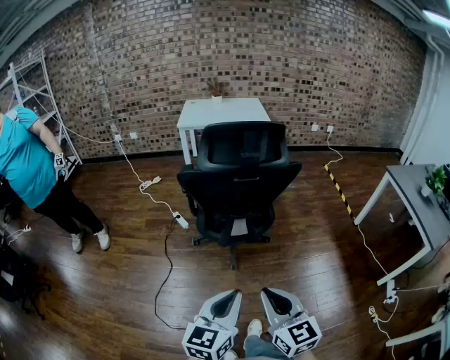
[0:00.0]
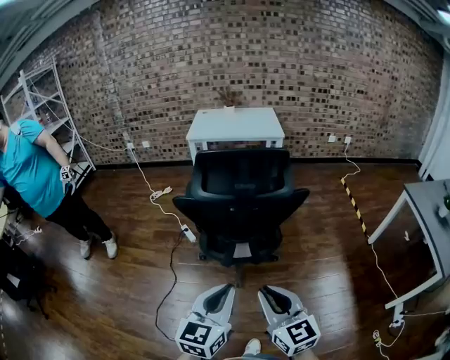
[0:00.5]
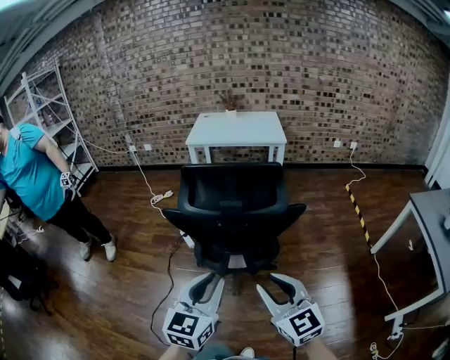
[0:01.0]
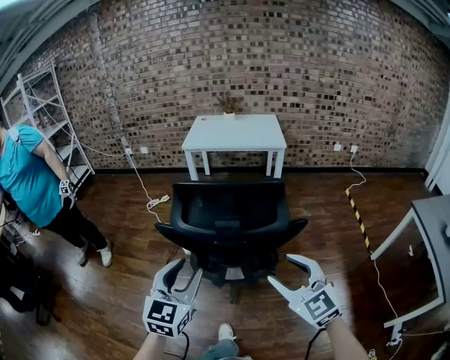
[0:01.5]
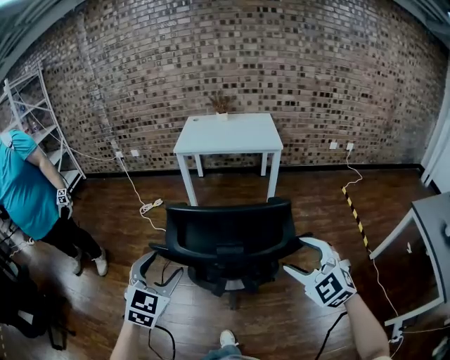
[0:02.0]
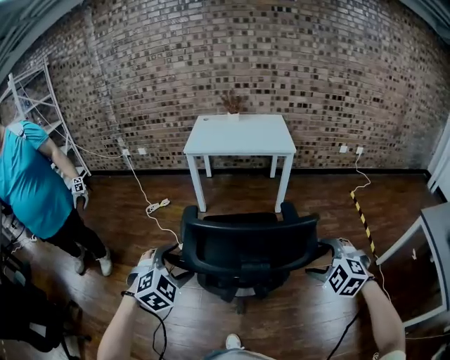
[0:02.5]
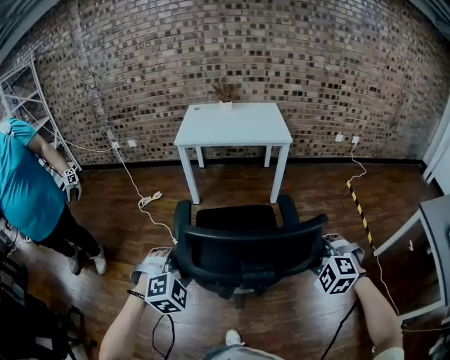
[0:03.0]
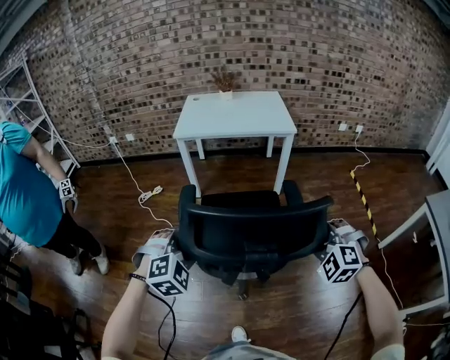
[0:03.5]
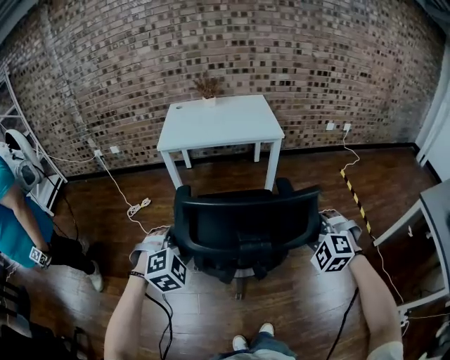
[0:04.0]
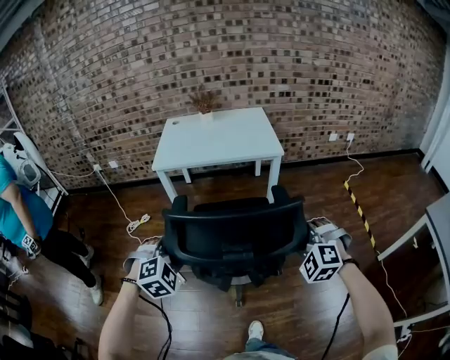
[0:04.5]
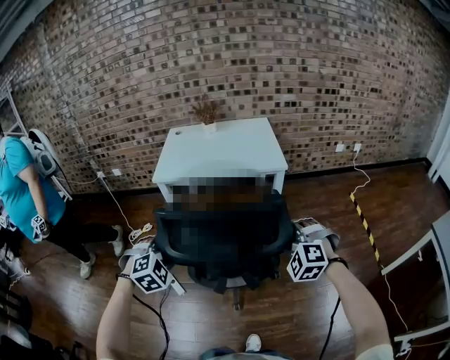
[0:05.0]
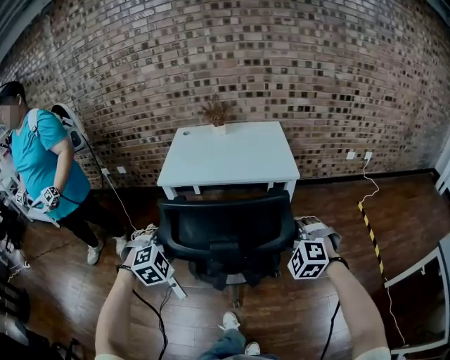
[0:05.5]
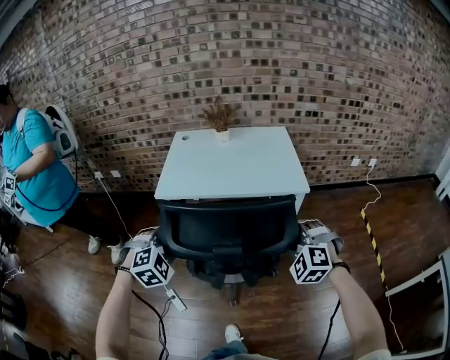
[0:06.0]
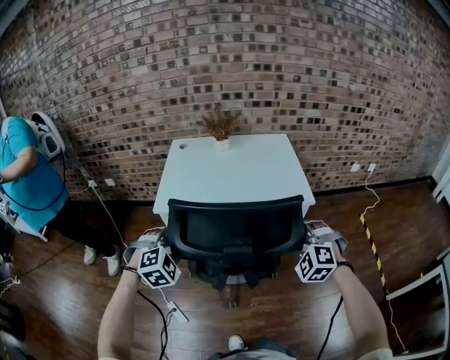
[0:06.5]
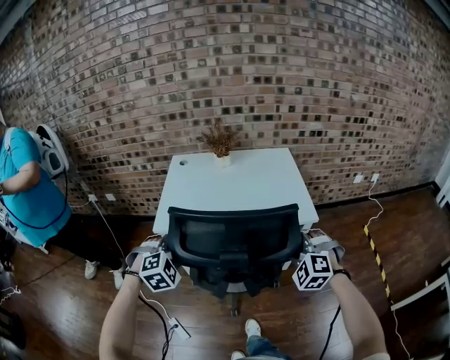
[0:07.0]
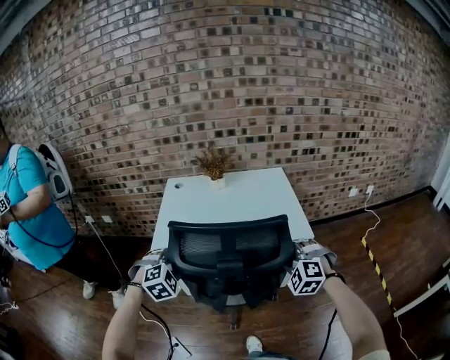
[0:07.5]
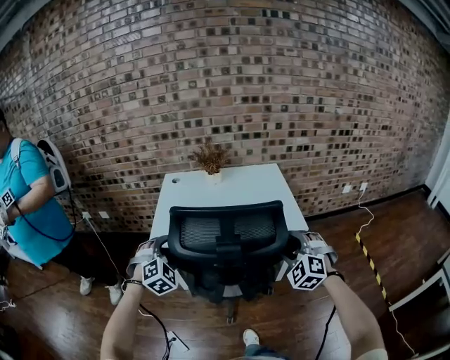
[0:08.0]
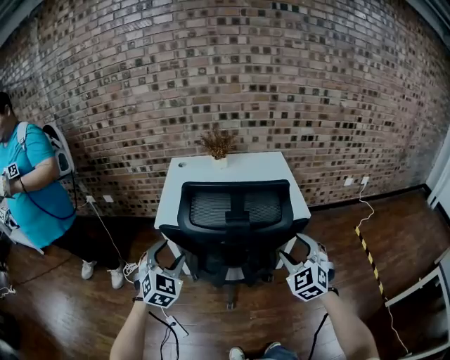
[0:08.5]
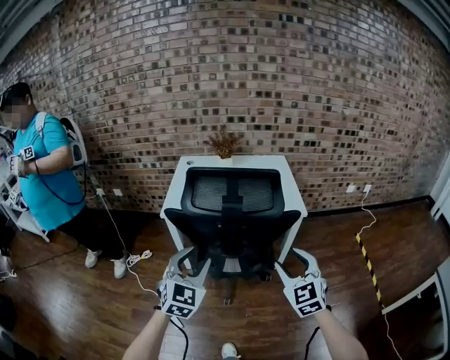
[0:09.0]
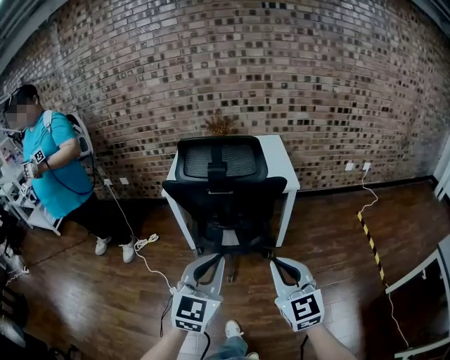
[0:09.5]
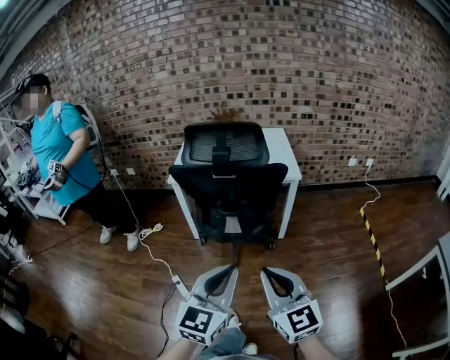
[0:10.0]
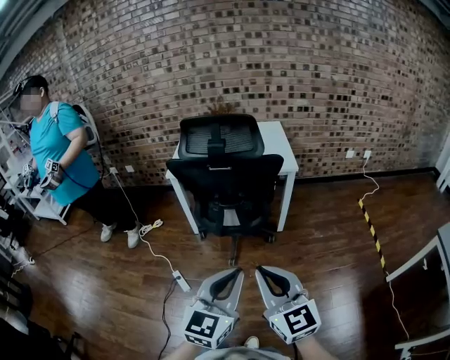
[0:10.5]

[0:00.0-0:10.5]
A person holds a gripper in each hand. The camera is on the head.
0:00.0 to 0:02.0: The left gripper shifts approximately 35 cm forward, swivels about 40 degrees, and opens up. The right gripper goes approximately 40 cm forward and to the right, rolls counterclockwise, seen from behind, by approximately 40 degrees, and opens up.
0:02.0 to 0:04.0: Both grippers travel together forward, about 25 cm. The right gripper turns by approximately 30 degrees, and closes its fingers. Meanwhile the left gripper swivels some 50 degrees.
0:04.0 to 0:06.5: The pair of grippers is taken forward, some 40 cm.
0:06.5 to 0:08.5: The left gripper travels forward and back again, some 10 cm each way, and rotates roughly 40 degrees. The right gripper moves some 10 cm forward and comes back, and swivels some 30 degrees.
0:08.5 to 0:10.5: The left gripper is displaced backward and to the right by some 50 cm, swivels some 40 degrees, and closes its fingers. The right gripper moves backward, some 40 cm, swivels approximately 50 degrees, and closes.

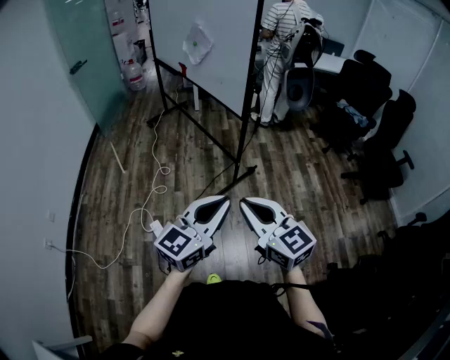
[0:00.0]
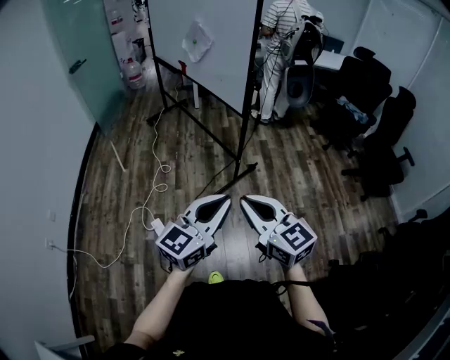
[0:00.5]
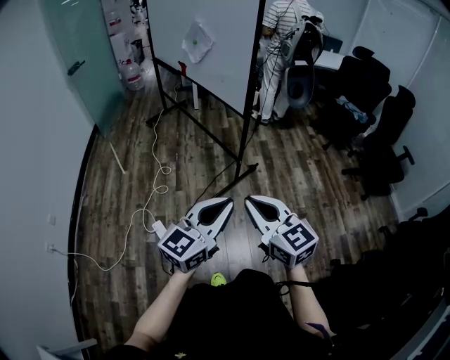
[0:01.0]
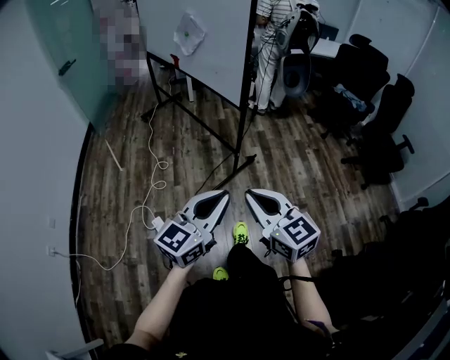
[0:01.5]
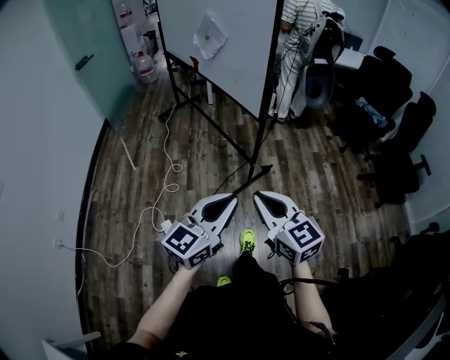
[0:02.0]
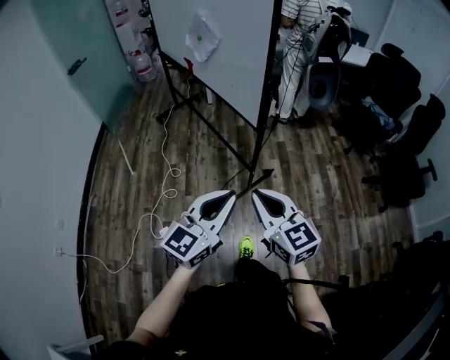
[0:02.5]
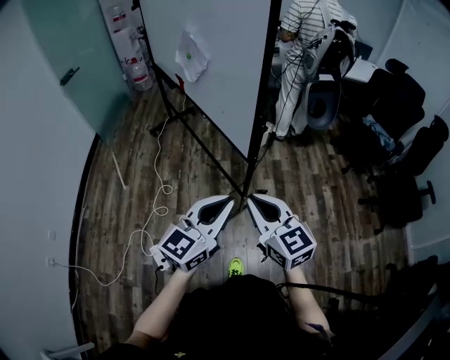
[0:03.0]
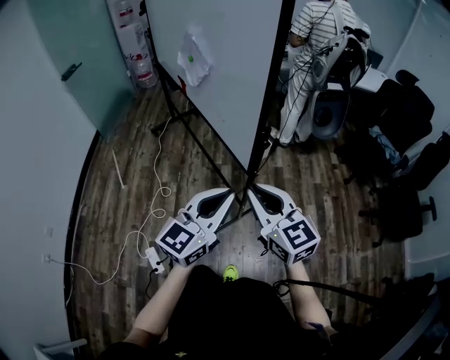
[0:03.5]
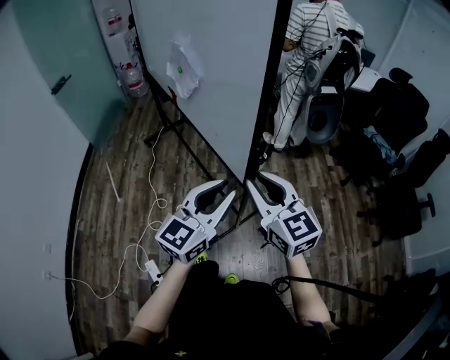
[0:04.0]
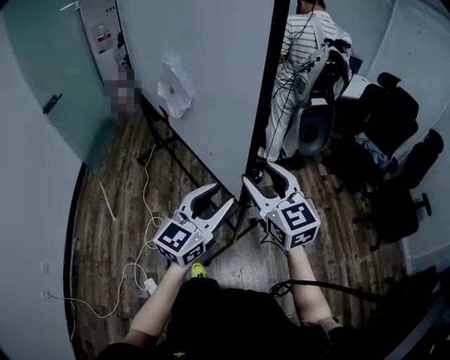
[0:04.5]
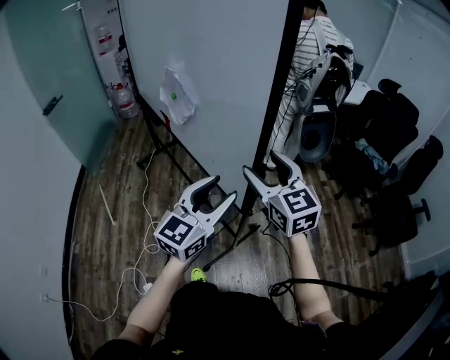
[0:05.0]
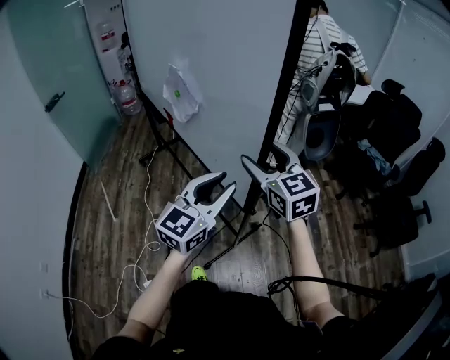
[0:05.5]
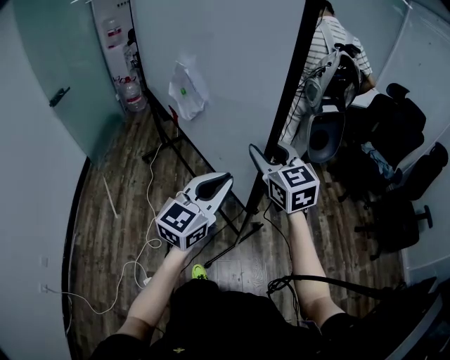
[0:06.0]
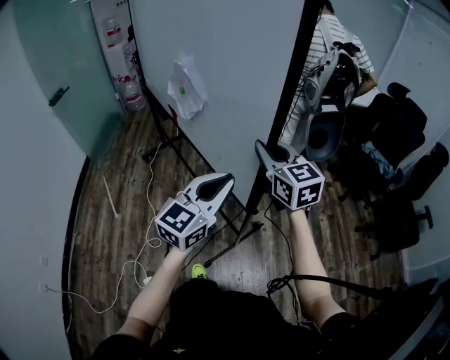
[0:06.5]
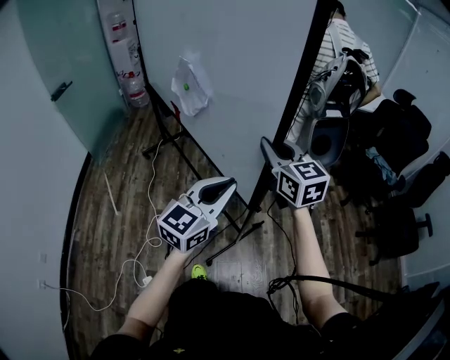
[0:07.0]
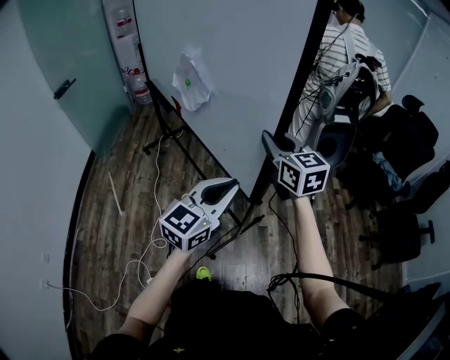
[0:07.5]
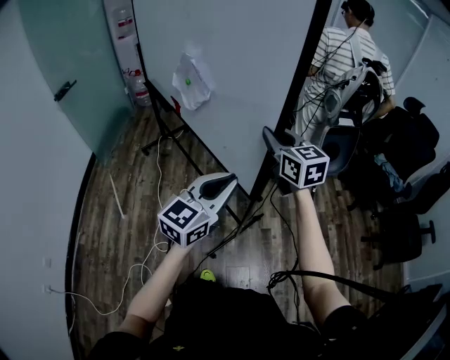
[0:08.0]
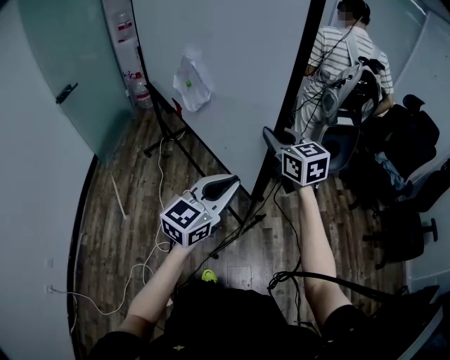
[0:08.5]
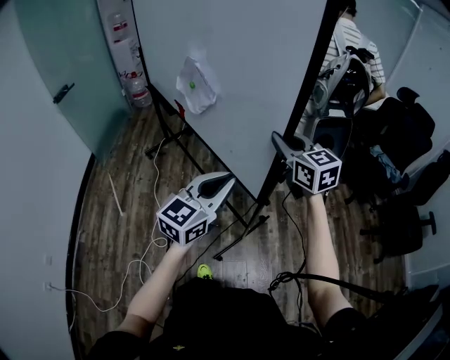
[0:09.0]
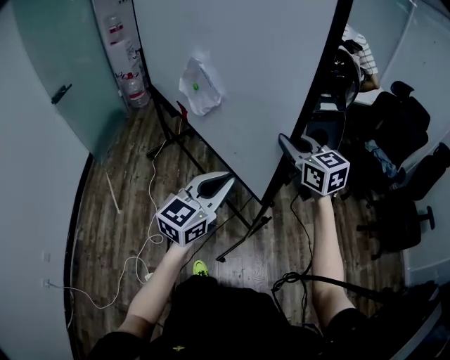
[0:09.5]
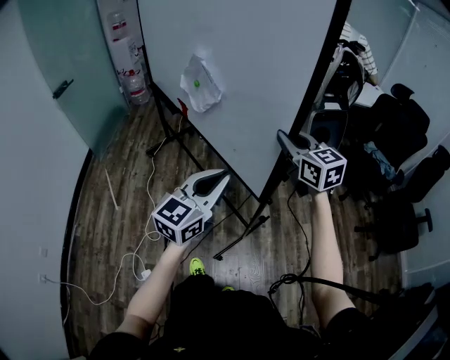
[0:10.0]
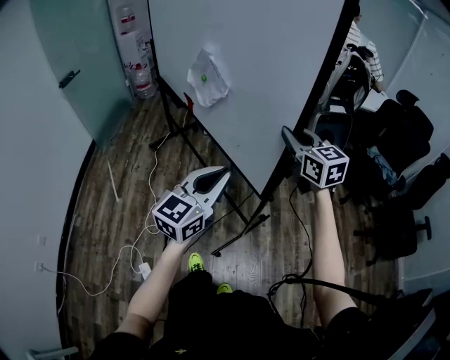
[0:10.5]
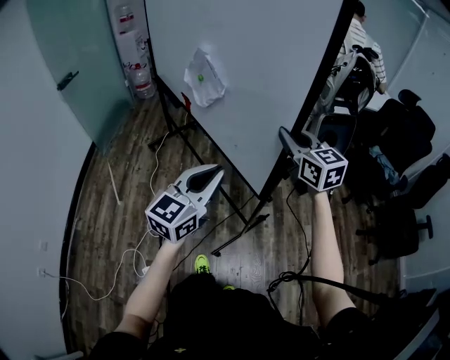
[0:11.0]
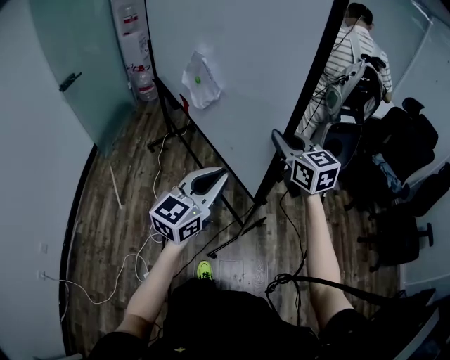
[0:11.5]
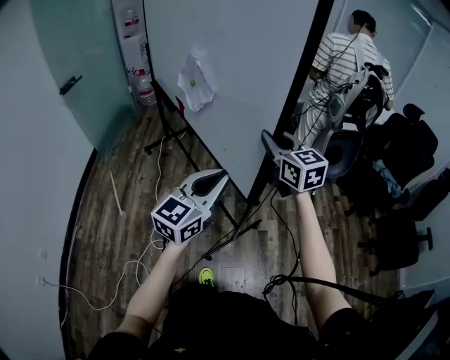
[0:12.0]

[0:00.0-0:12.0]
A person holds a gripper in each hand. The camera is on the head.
0:00.0 to 0:02.0: The two grippers go approximately 10 cm forward.
0:02.0 to 0:04.0: Both grippers move forward, about 35 cm.
0:04.0 to 0:06.0: The left gripper shifts approximately 10 cm forward, and opens, then closes again; the right gripper moves forward, roughly 15 cm, and opens, then closes once more.
0:06.0 to 0:08.0: The left gripper is displaced to the left and forward by approximately 10 cm. Meanwhile the right gripper shifts approximately 15 cm forward and to the left, and closes.
0:08.0 to 0:10.0: The left gripper travels to the right and backward by roughly 10 cm, while the right gripper travels to the right and backward by about 15 cm.
0:10.0 to 0:12.0: Both grippers travel together to the left and forward, some 15 cm.

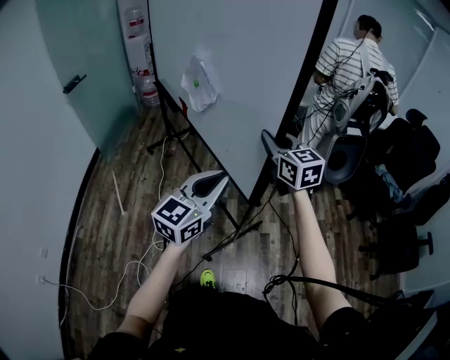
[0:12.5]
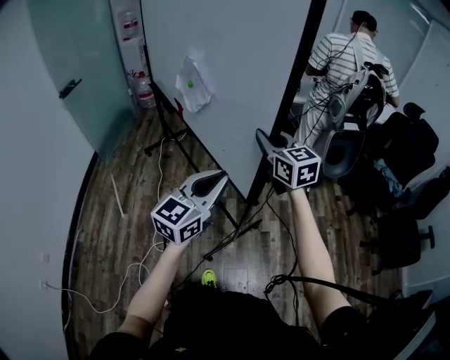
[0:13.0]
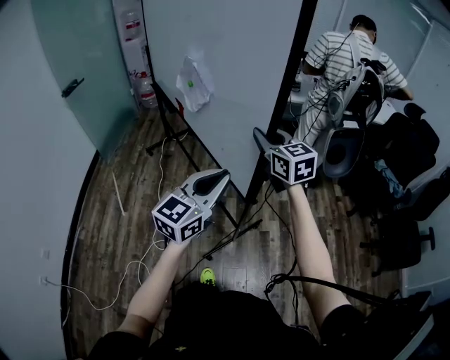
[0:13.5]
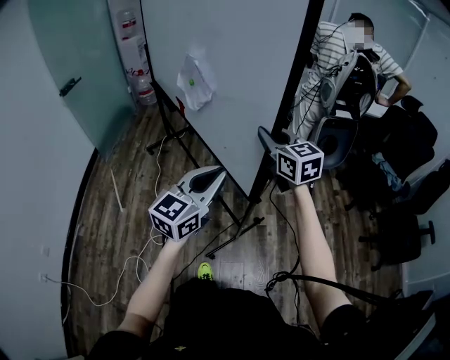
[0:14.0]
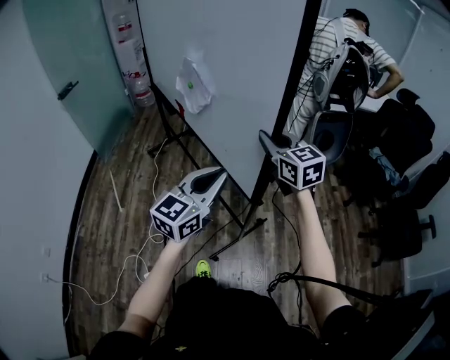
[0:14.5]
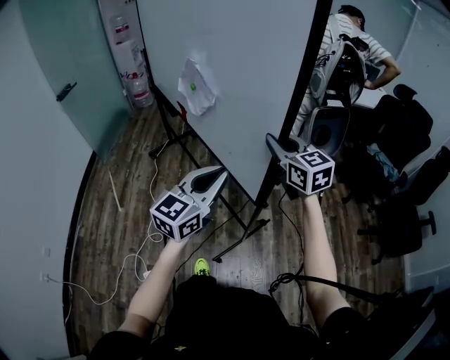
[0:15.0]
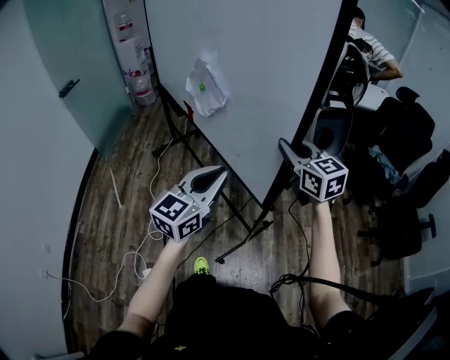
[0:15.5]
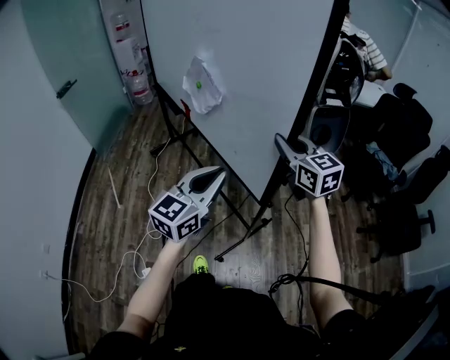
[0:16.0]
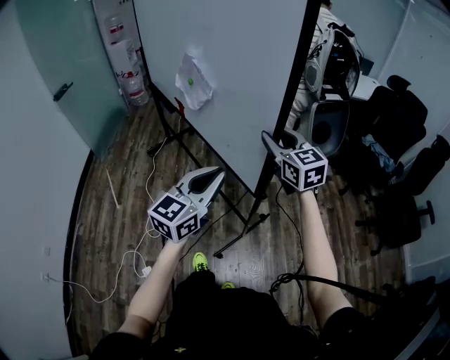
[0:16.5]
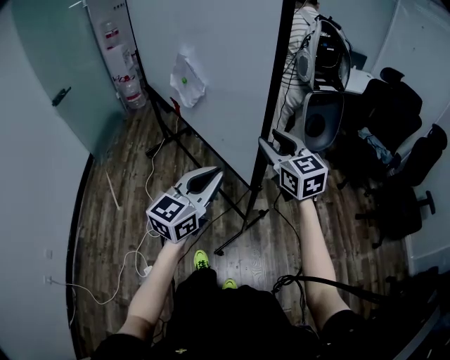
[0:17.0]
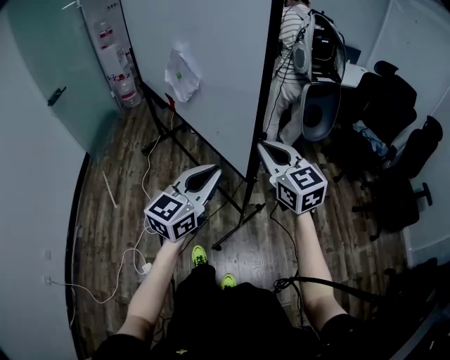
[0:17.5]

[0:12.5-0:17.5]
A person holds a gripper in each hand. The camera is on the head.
0:12.5 to 0:15.0: The grippers both shift to the right and backward by roughly 15 cm.
0:15.0 to 0:17.5: The left gripper travels backward by about 10 cm. The right gripper is displaced backward by some 15 cm.
